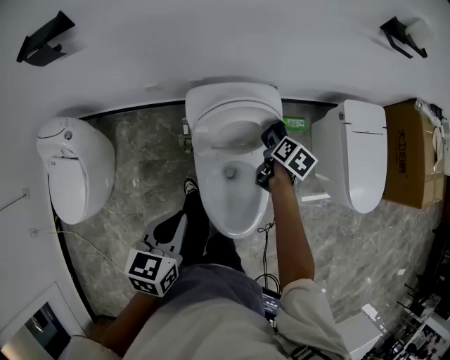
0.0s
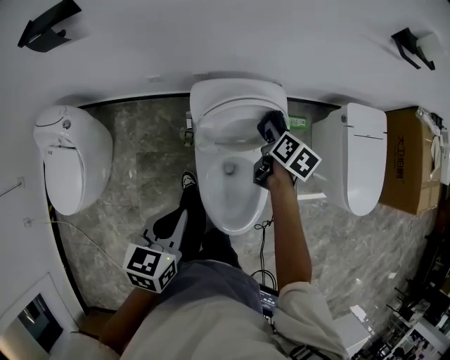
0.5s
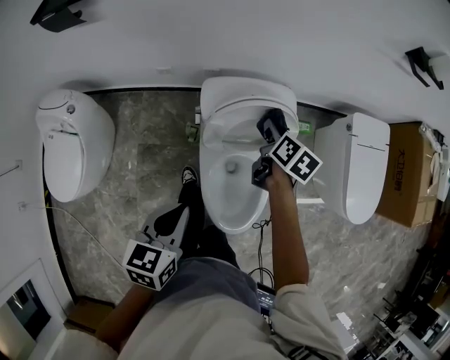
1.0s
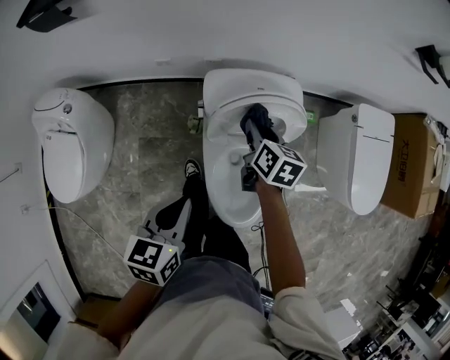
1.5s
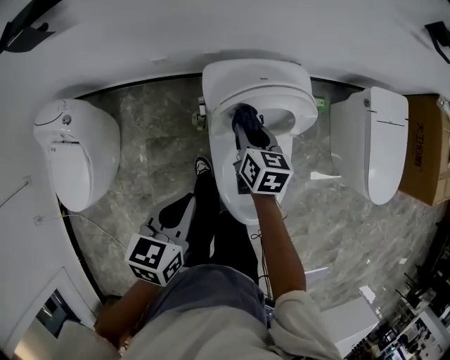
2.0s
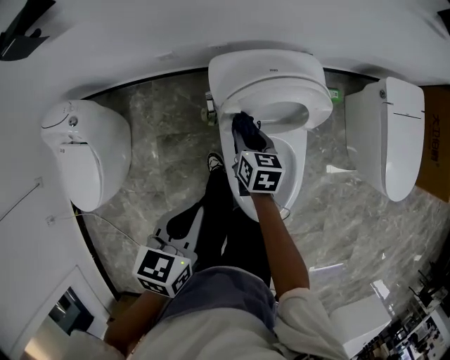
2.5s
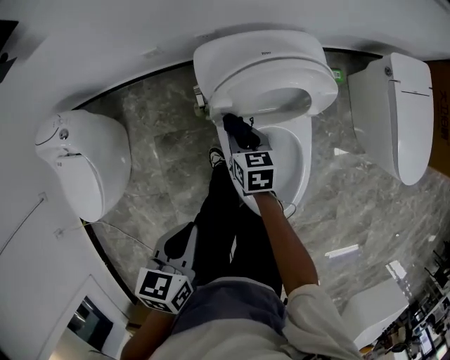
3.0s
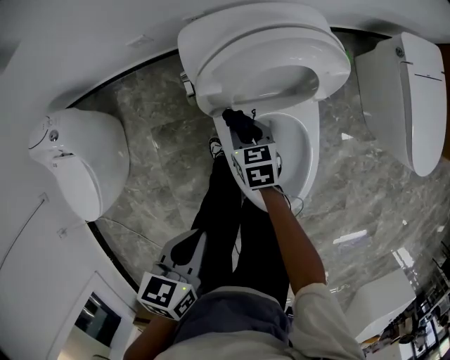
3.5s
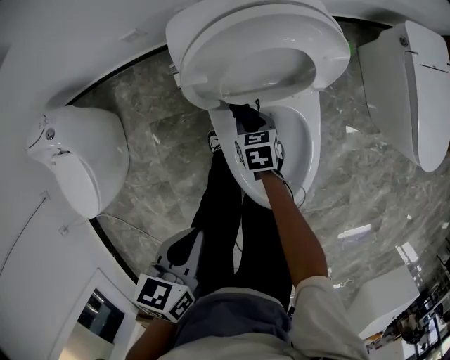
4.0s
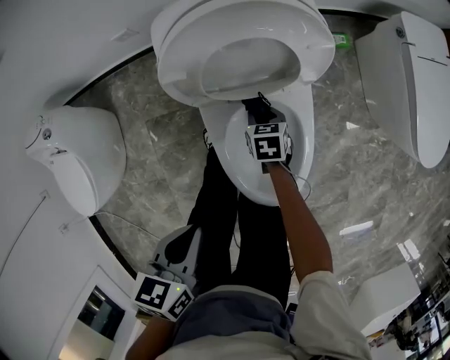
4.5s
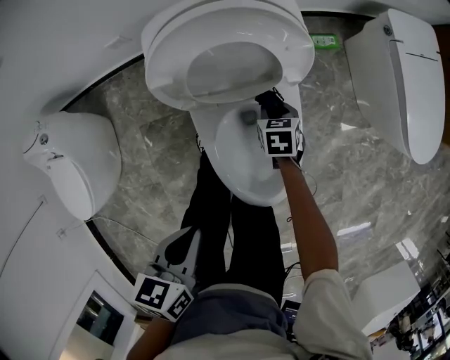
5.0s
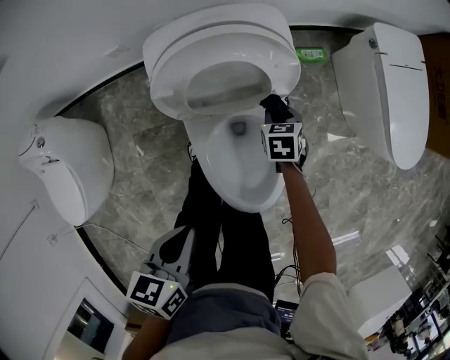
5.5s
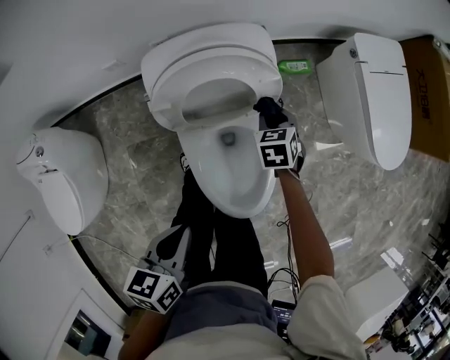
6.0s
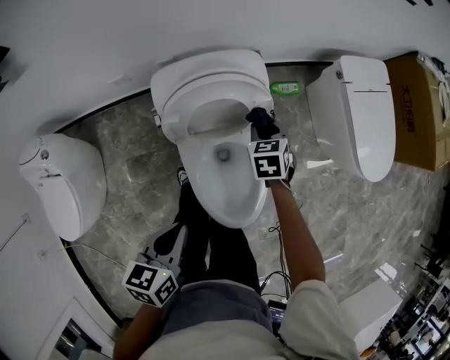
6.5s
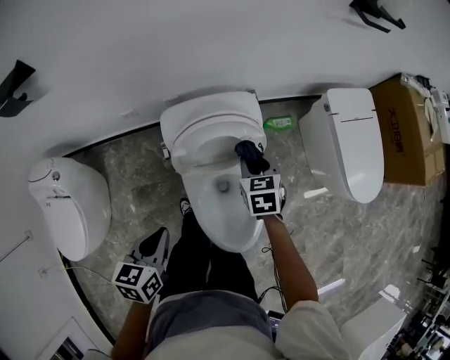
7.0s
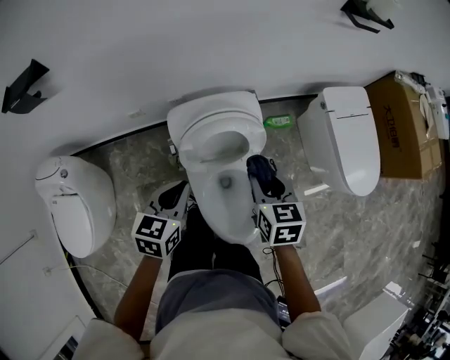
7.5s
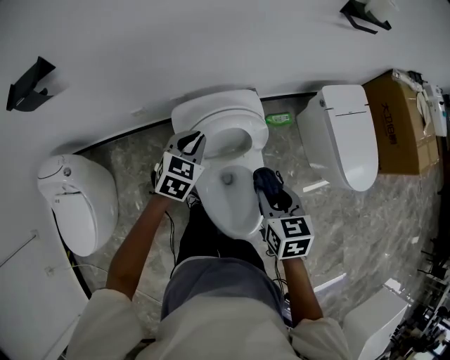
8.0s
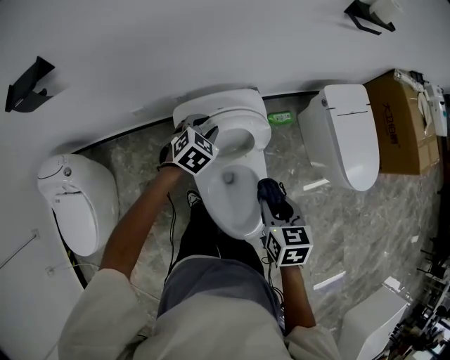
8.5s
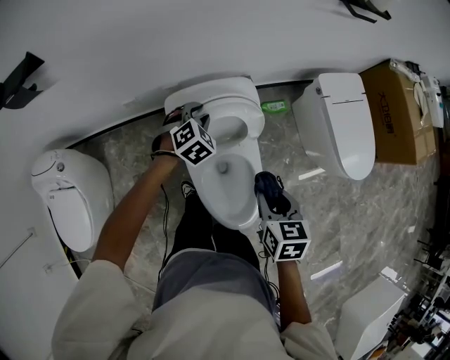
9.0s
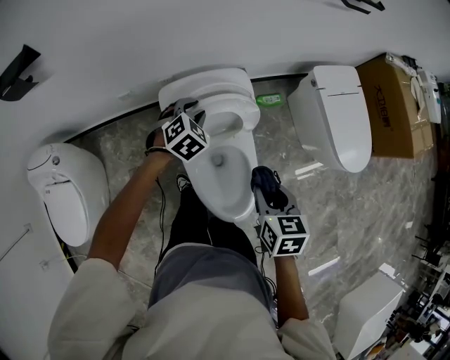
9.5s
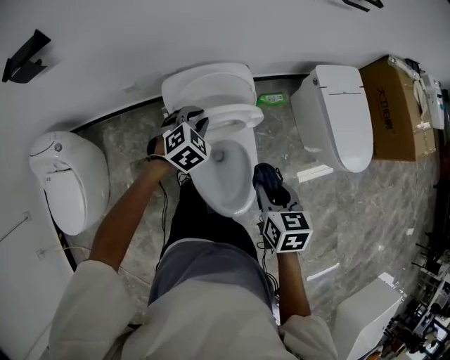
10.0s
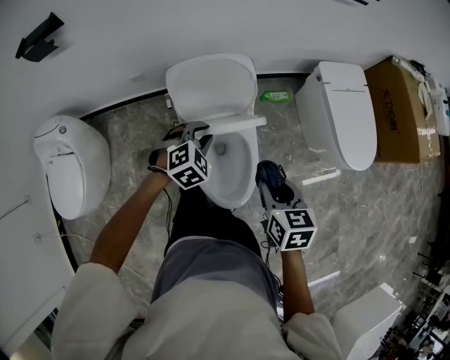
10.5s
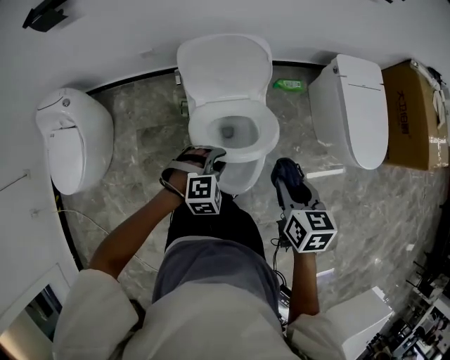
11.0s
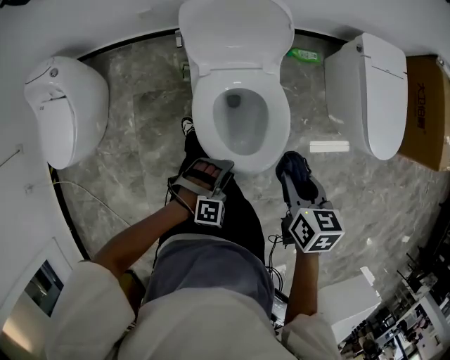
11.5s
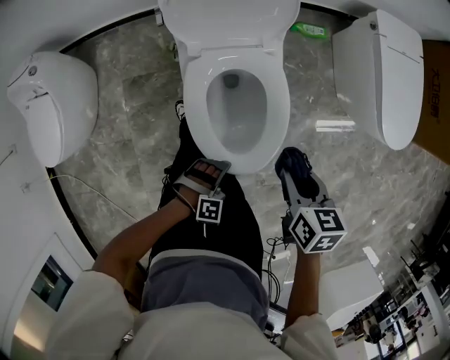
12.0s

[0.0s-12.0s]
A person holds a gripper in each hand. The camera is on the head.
0.0s to 2.0s: The right gripper is displaced to the left by about 20 cm, and changes its angle by some 30 degrees. Meanwhile the left gripper changes place by roughly 10 cm.
2.0s to 4.0s: The right gripper goes approximately 25 cm downward, and turns by about 20 degrees. Meanwhile the left gripper shifts approximately 15 cm downward and backward.
4.0s to 6.0s: The right gripper goes roughly 25 cm to the right, upward and forward, and turns by roughly 20 degrees. The left gripper is displaced to the right by some 5 cm.
6.0s to 8.0s: The left gripper is displaced forward by approximately 25 cm, and rolls clockwise, seen from behind, by about 40 degrees. The right gripper heads upward and backward, covering some 30 cm, and rotates about 20 degrees.
8.0s to 10.0s: The right gripper travels backward and to the right by approximately 10 cm. Meanwhile the left gripper moves to the right, some 5 cm, and turns by approximately 20 degrees.
10.0s to 12.0s: The right gripper travels downward, backward and to the right by some 20 cm. The left gripper shifts some 50 cm backward and downward, and rotates roughly 40 degrees.

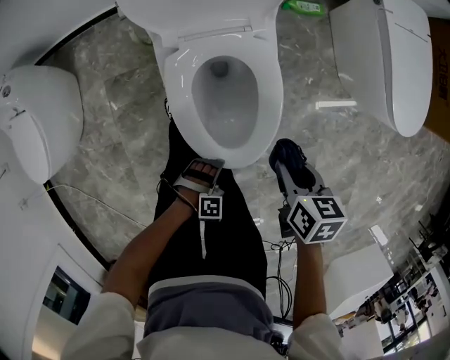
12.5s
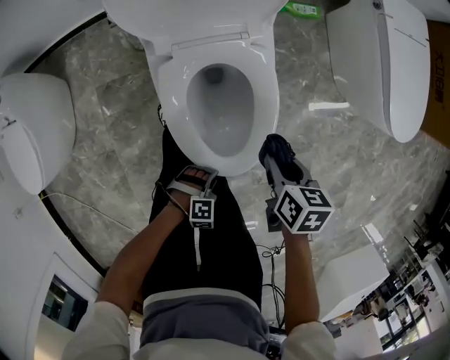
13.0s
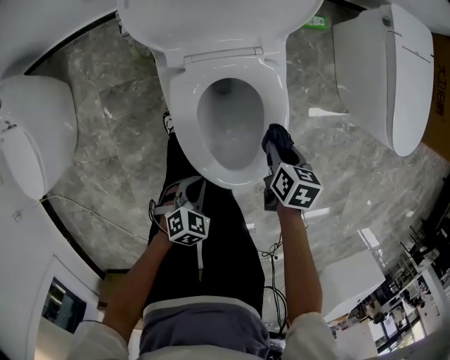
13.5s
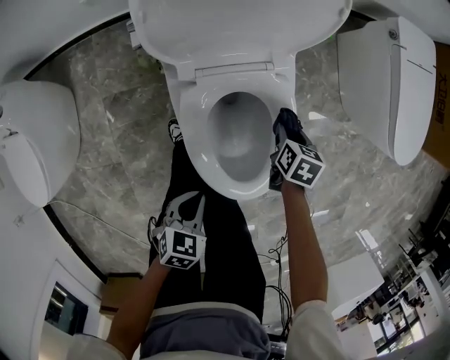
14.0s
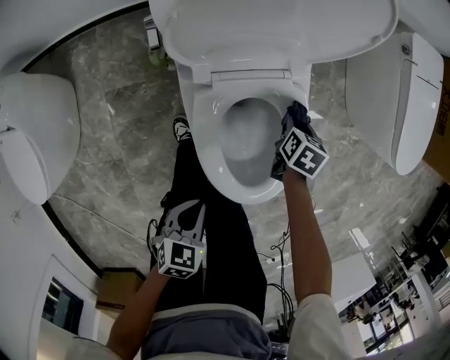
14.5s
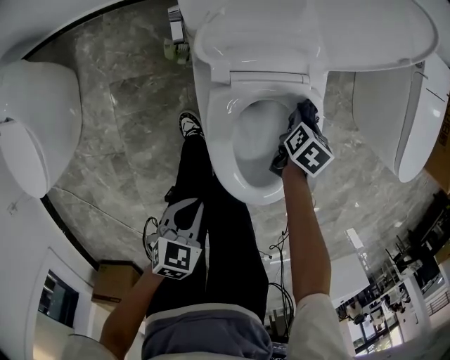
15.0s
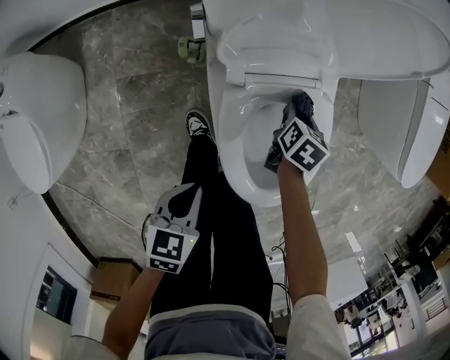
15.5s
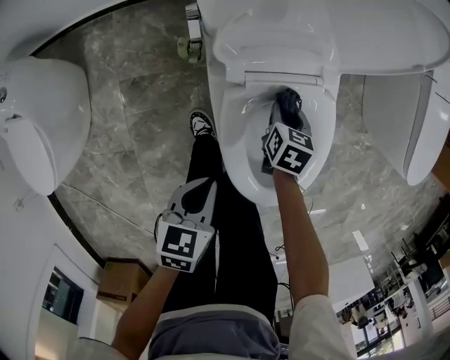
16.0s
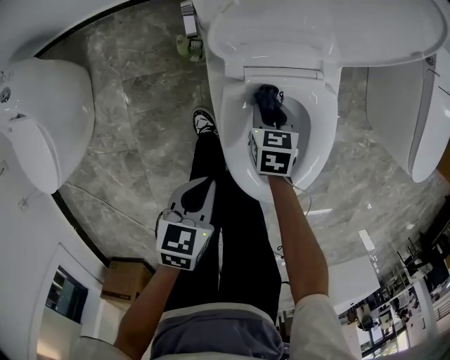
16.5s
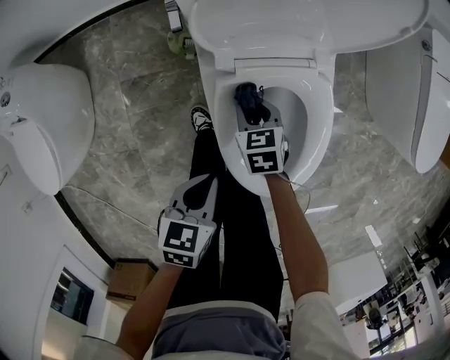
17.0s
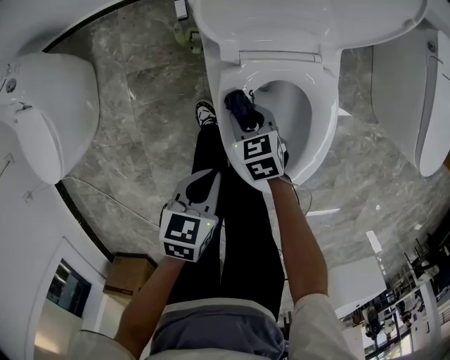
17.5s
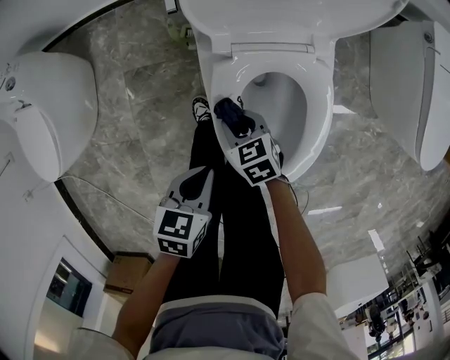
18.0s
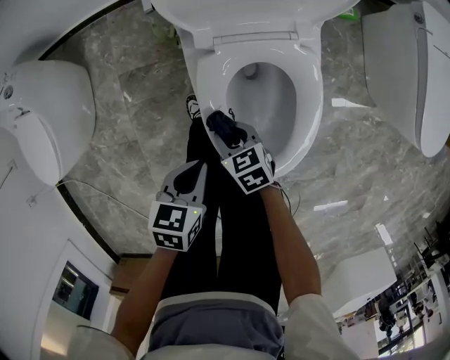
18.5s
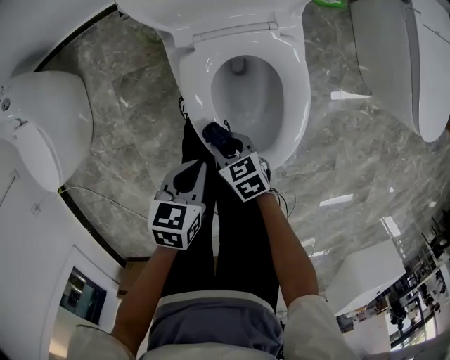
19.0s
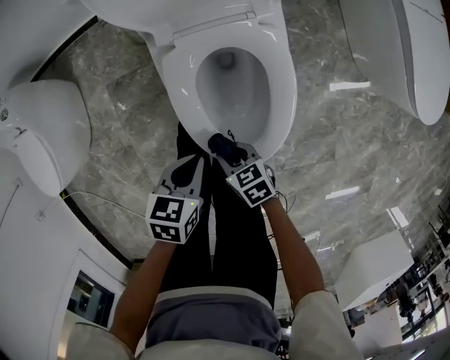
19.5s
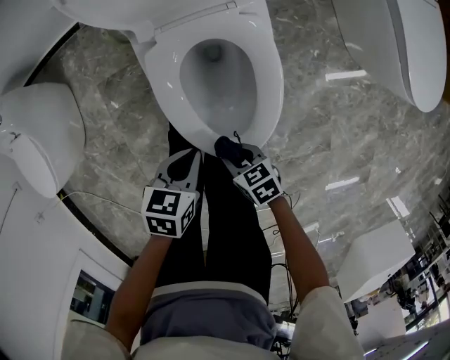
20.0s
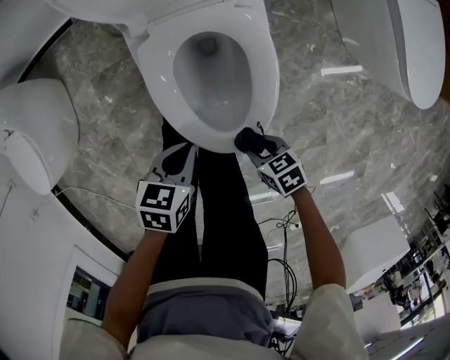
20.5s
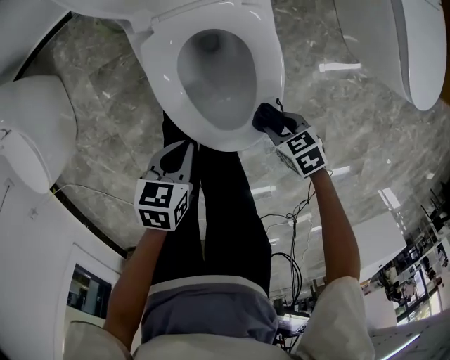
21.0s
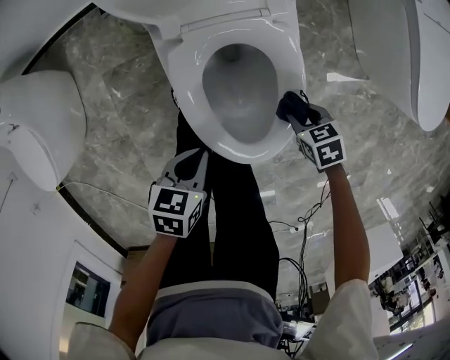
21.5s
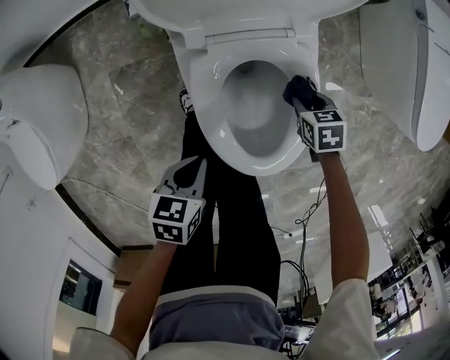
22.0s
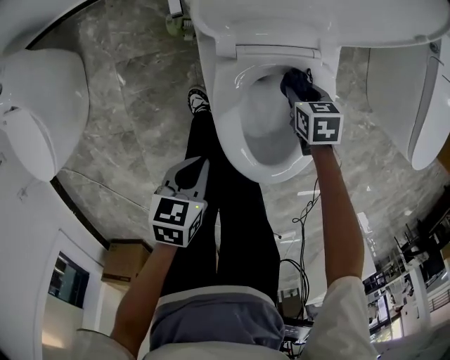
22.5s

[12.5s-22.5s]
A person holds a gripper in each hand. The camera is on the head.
12.5s to 14.5s: The left gripper changes place by roughly 20 cm, twists some 80 degrees counterclockwise, seen from behind, and closes its fingers. The right gripper shifts by about 30 cm, and swivels some 20 degrees.
14.5s to 16.5s: The right gripper changes place by some 20 cm, and rotates some 30 degrees; the left gripper ends up approximately 10 cm from where it was.
16.5s to 18.5s: The left gripper shifts by some 5 cm. The right gripper shifts about 15 cm backward, and swivels approximately 30 degrees.
18.5s to 20.5s: The left gripper moves some 10 cm. The right gripper shifts by about 25 cm.
20.5s to 22.5s: The left gripper shifts by some 15 cm; the right gripper ends up approximately 30 cm from where it was, and changes its angle by about 20 degrees.

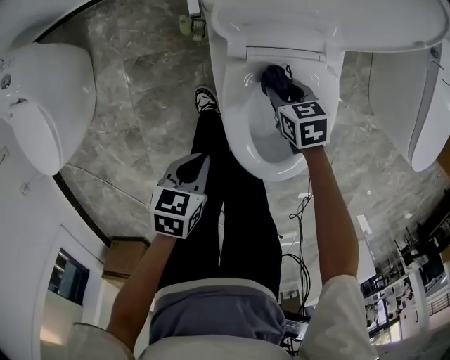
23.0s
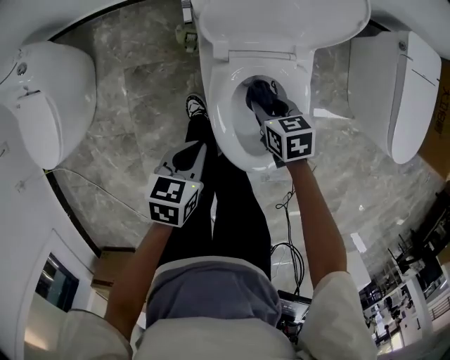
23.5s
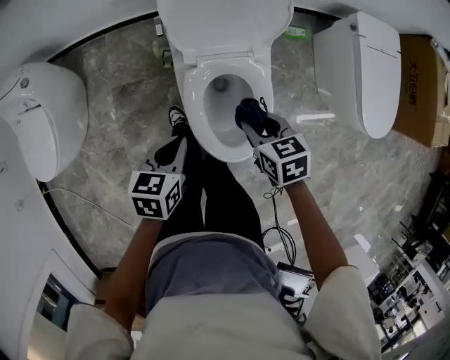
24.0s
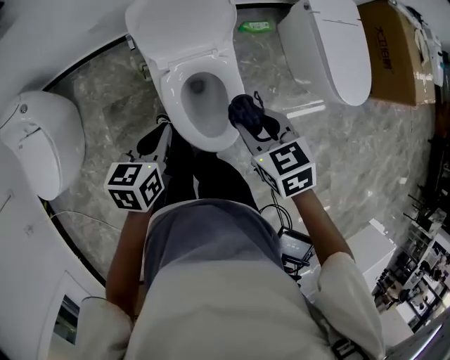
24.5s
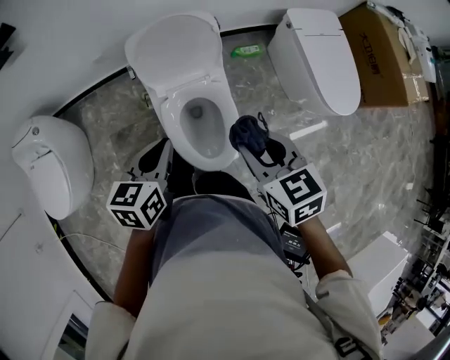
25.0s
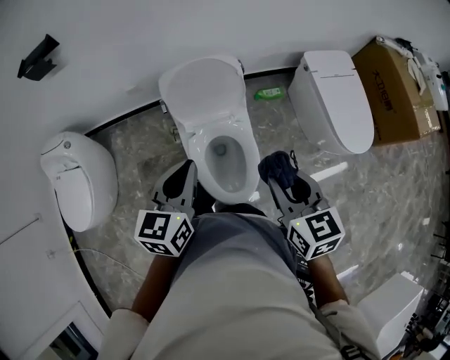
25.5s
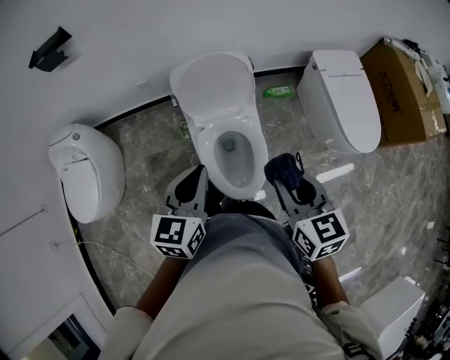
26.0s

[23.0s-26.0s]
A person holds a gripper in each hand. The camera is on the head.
23.0s to 24.5s: The right gripper shifts about 40 cm upward and backward. The left gripper goes roughly 30 cm upward, and changes its angle by about 30 degrees.
24.5s to 26.0s: The left gripper is displaced upward by some 15 cm, and changes its angle by about 20 degrees; the right gripper is displaced upward and backward by approximately 15 cm, and turns by about 20 degrees.

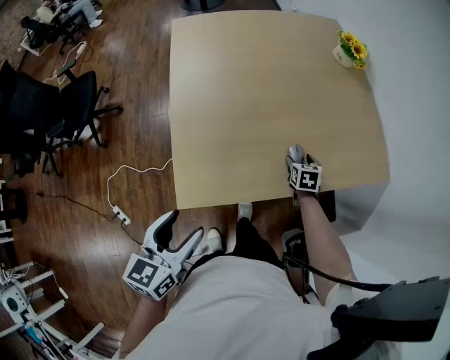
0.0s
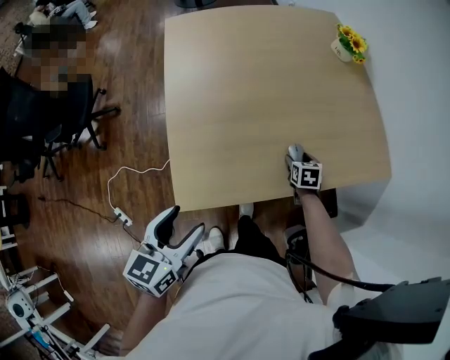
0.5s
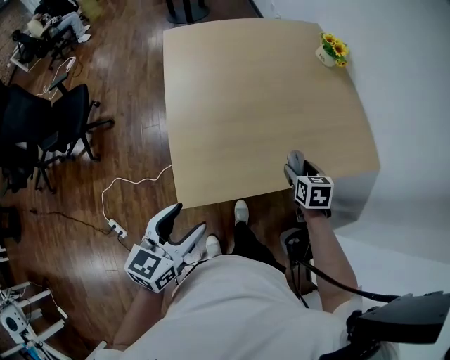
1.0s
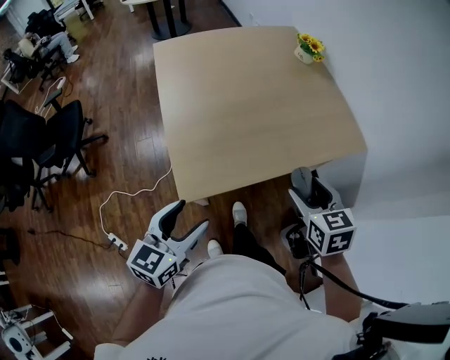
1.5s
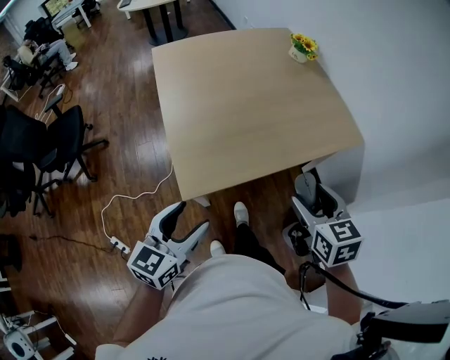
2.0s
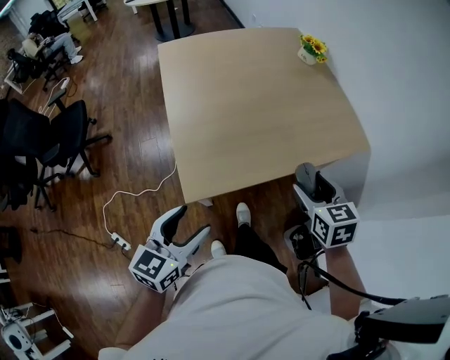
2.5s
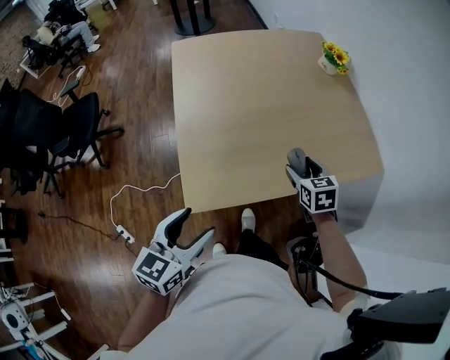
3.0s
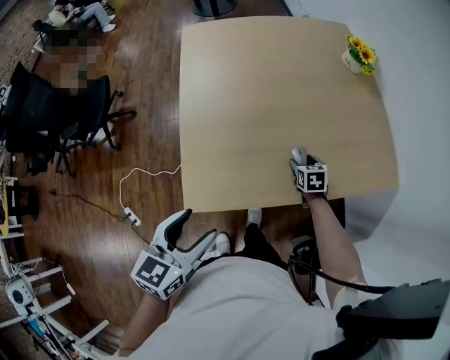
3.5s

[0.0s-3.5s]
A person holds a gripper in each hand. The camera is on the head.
0.0s to 2.0s: The left gripper is displaced backward by some 10 cm, and turns by roughly 20 degrees. The right gripper goes some 40 cm upward and backward.
2.0s to 3.5s: The right gripper shifts about 40 cm forward and downward, while the left gripper is displaced forward by approximately 10 cm.
